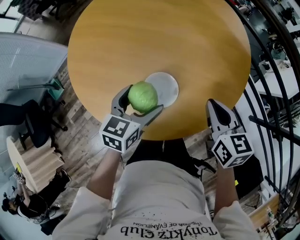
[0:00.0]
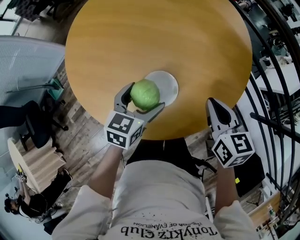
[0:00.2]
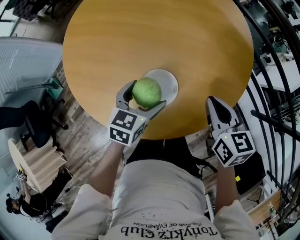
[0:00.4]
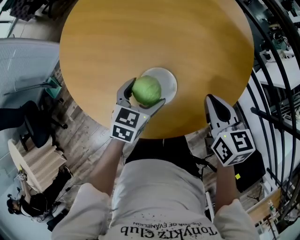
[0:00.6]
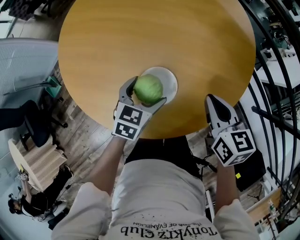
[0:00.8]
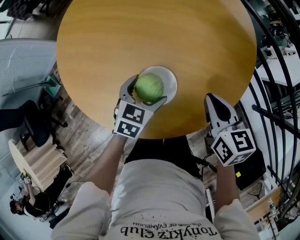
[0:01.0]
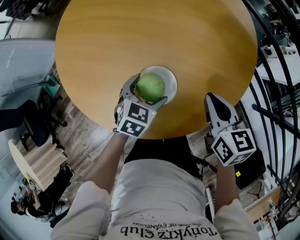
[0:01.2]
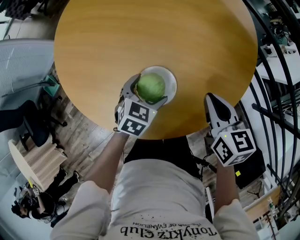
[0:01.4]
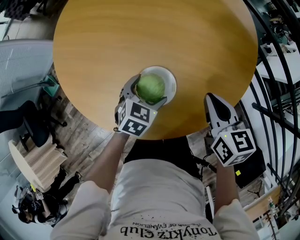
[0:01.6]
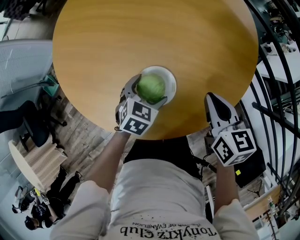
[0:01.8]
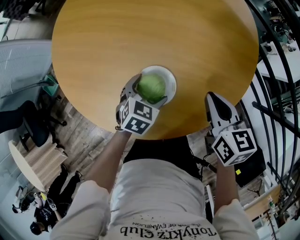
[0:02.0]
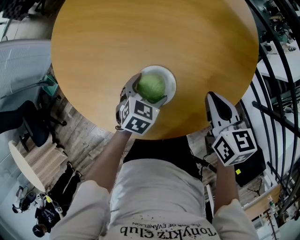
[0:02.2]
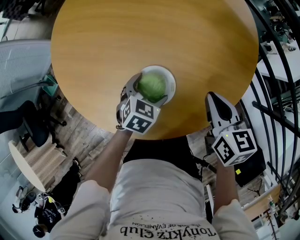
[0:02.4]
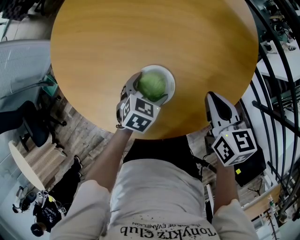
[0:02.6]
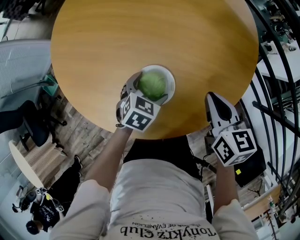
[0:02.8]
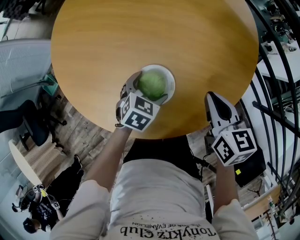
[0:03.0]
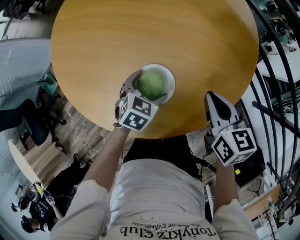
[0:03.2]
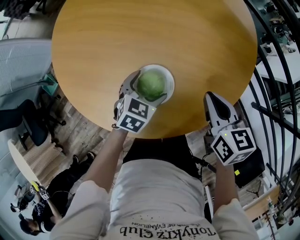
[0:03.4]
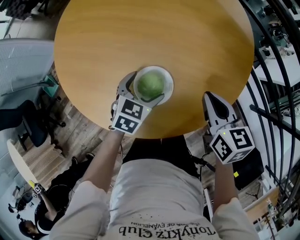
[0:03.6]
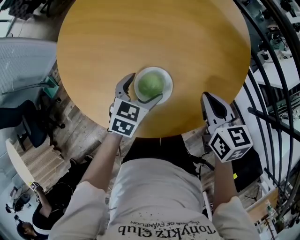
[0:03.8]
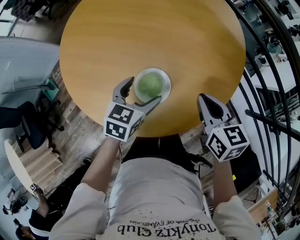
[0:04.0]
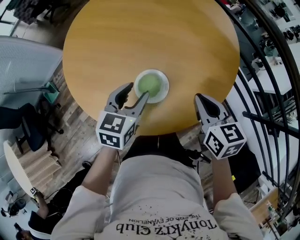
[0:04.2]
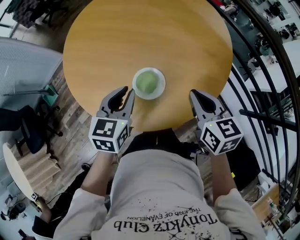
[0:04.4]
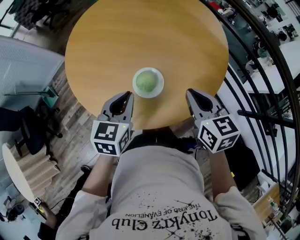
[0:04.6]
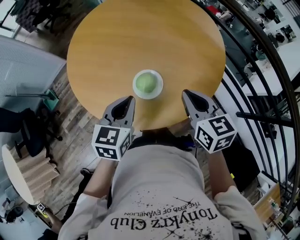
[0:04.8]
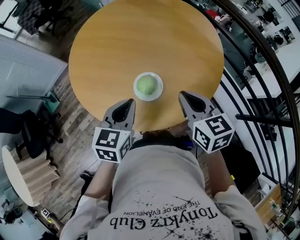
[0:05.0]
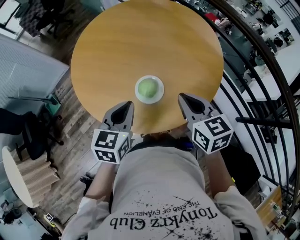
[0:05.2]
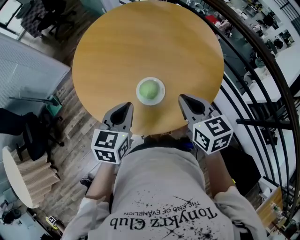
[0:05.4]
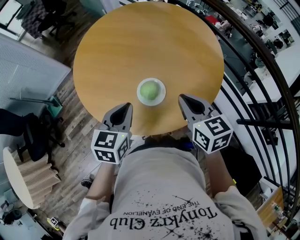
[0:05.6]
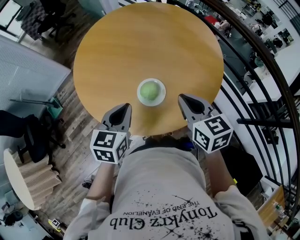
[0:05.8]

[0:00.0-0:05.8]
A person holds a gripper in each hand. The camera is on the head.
0.0 to 1.4 s: The left gripper is displaced downward by about 10 cm, and changes its angle by about 20 degrees.
1.4 to 2.8 s: The grippers stay close to where they were, moving slightly.
2.8 to 4.4 s: The right gripper heads upward, covering approximately 10 cm. Meanwhile the left gripper heads upward, covering roughly 20 cm, swivels roughly 30 degrees, and closes its fingers.
4.4 to 5.8 s: The left gripper heads backward, covering about 5 cm. The right gripper shifts about 10 cm upward and to the left.

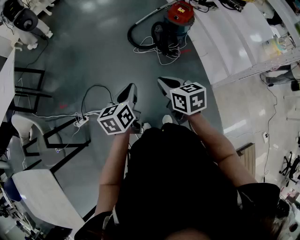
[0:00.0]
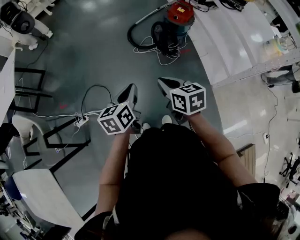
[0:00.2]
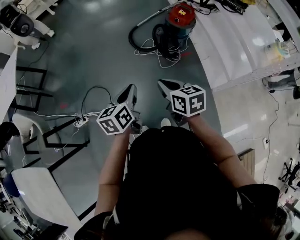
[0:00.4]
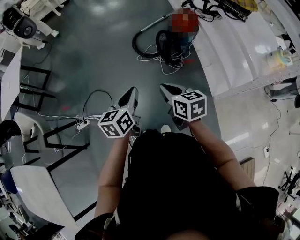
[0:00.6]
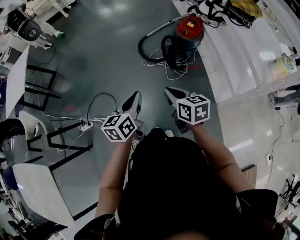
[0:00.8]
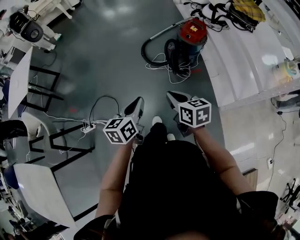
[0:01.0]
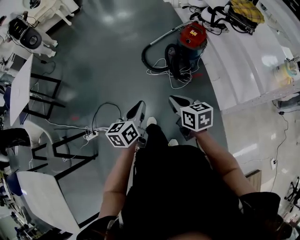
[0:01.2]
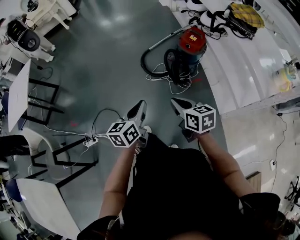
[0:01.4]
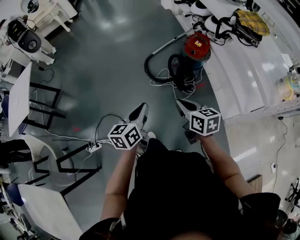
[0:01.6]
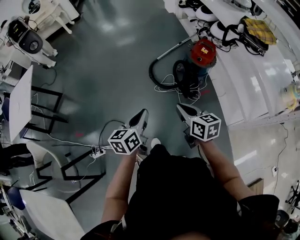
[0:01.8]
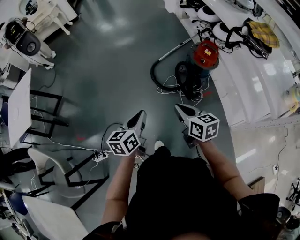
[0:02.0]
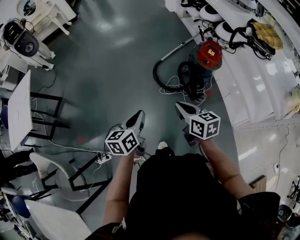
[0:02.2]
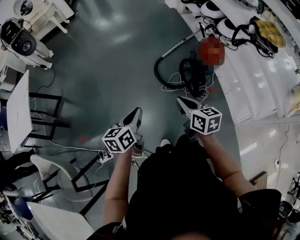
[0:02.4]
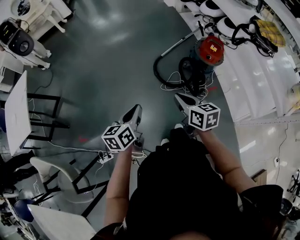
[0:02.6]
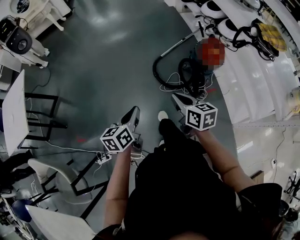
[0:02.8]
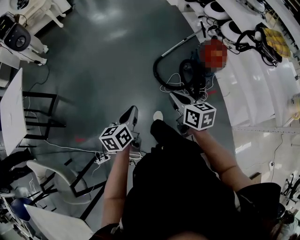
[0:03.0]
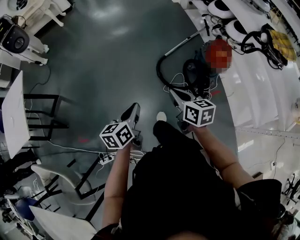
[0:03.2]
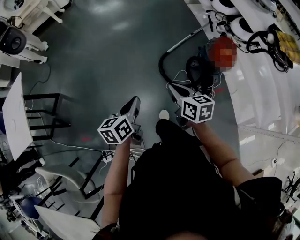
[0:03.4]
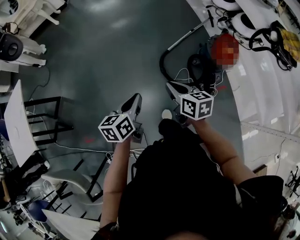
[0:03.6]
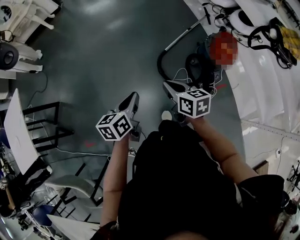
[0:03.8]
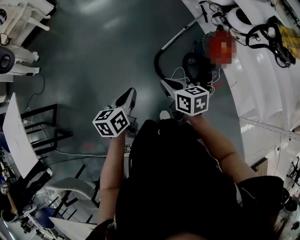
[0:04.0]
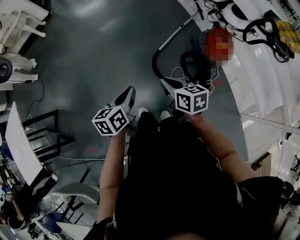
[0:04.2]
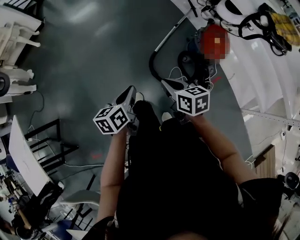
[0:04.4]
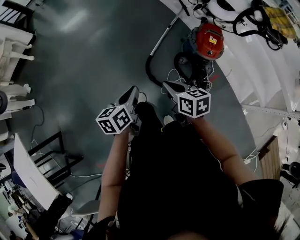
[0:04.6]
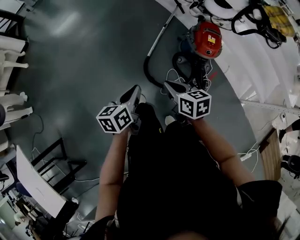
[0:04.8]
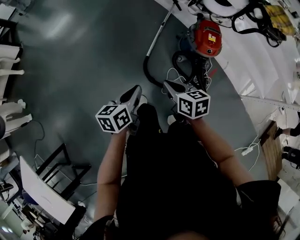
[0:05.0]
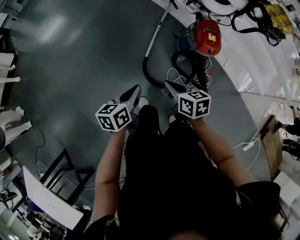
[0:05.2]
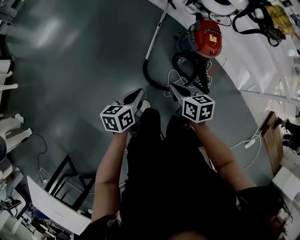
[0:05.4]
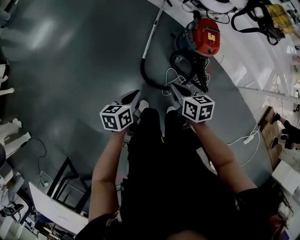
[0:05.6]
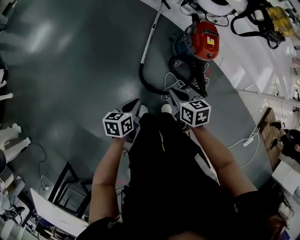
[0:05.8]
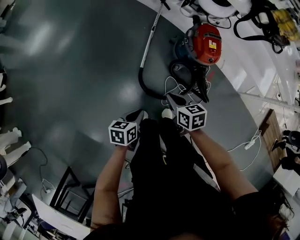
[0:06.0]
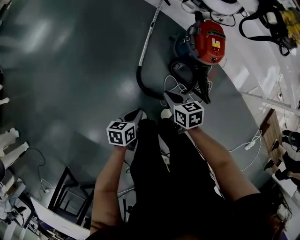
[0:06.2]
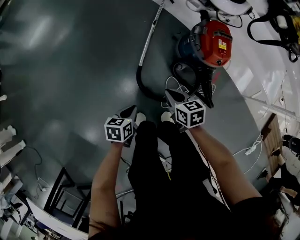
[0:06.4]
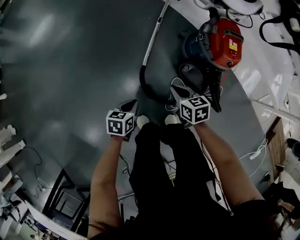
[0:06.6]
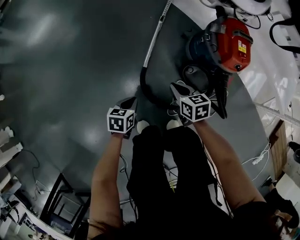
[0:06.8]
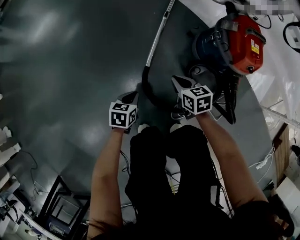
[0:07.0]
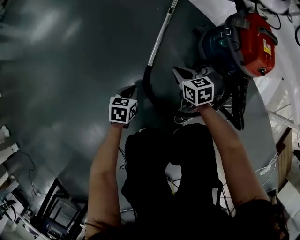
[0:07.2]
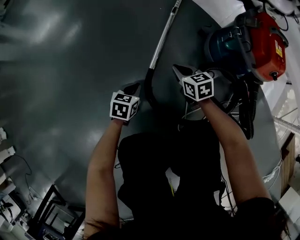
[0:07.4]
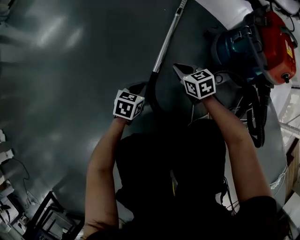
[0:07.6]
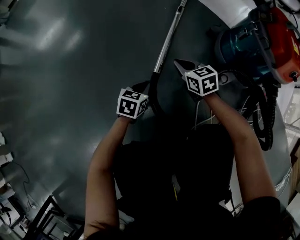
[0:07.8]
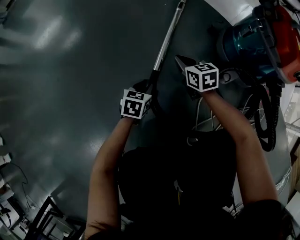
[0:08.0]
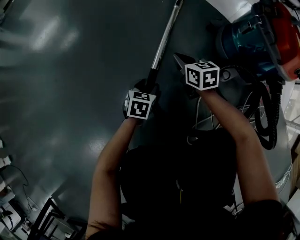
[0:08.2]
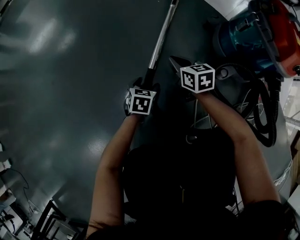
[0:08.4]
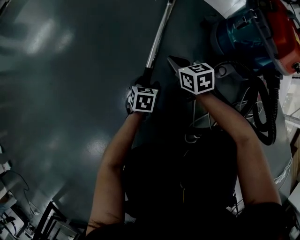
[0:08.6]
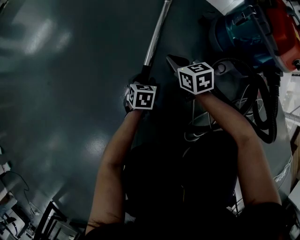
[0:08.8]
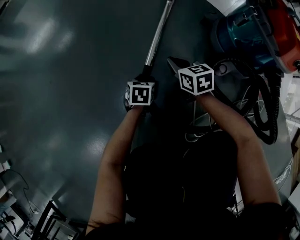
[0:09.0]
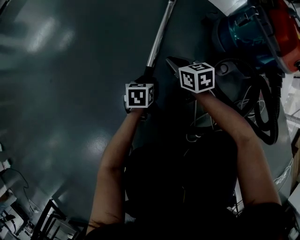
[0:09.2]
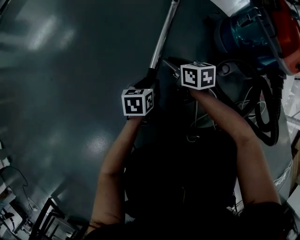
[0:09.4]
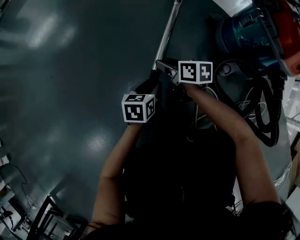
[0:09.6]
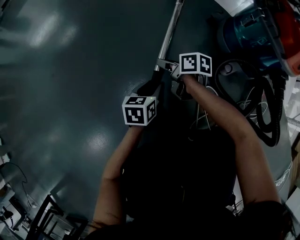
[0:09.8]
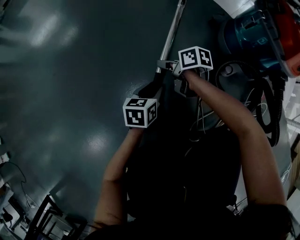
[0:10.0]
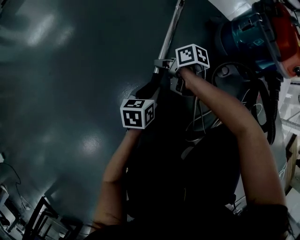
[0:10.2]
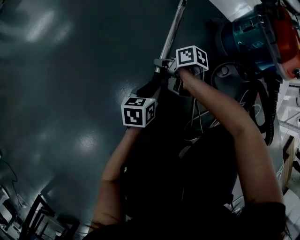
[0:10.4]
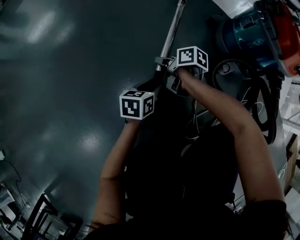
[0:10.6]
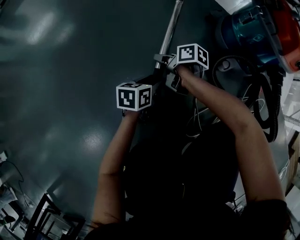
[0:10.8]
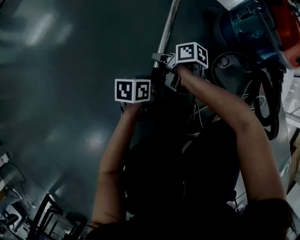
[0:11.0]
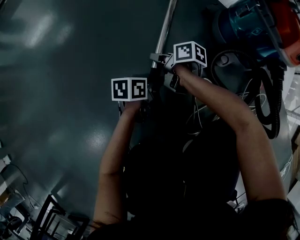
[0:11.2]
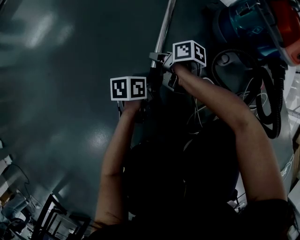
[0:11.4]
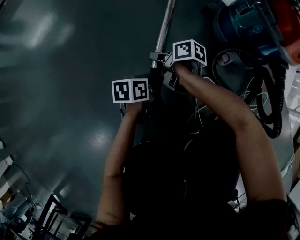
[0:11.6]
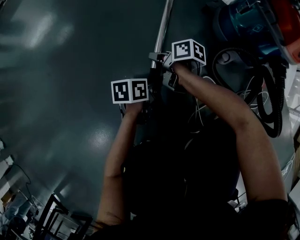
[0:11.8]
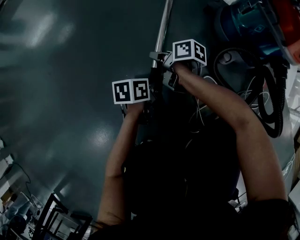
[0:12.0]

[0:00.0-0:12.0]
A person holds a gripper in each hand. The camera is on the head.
0.0 to 1.6 s: Both grippers travel together forward, some 15 cm.
1.6 to 3.0 s: The right gripper goes about 30 cm forward and to the left, while the left gripper goes approximately 30 cm to the left and forward.
3.0 to 4.4 s: Both grippers travel together forward, approximately 25 cm.
4.4 to 6.0 s: The left gripper moves downward, roughly 20 cm, and rotates approximately 40 degrees. Meanwhile the right gripper changes place by about 25 cm, and turns by roughly 30 degrees.
6.0 to 7.6 s: The grippers both shift downward and forward by about 50 cm. The left gripper turns by approximately 20 degrees; the right gripper rotates about 20 degrees.
7.6 to 9.0 s: The left gripper travels downward by roughly 10 cm, and opens up.
9.0 to 10.4 s: The left gripper goes roughly 10 cm upward and backward, and turns by about 20 degrees. The right gripper travels to the left by about 5 cm, twists about 40 degrees clockwise, seen from behind, and opens up.
10.4 to 12.0 s: The left gripper turns by approximately 20 degrees.

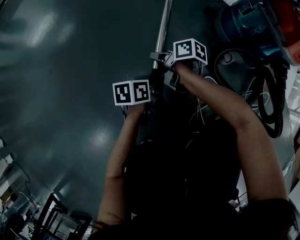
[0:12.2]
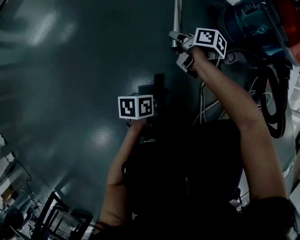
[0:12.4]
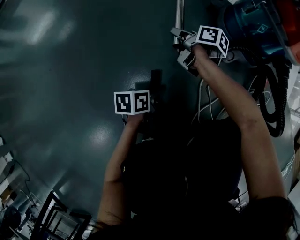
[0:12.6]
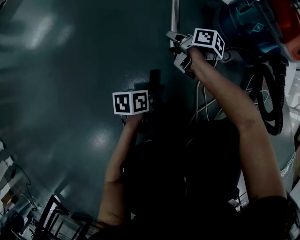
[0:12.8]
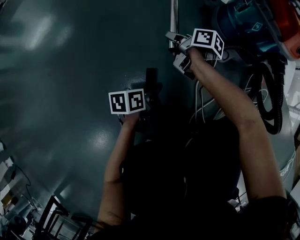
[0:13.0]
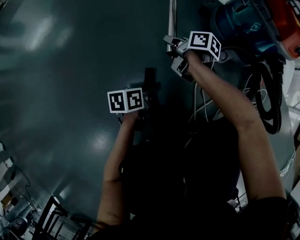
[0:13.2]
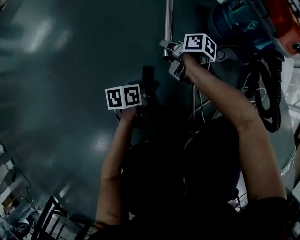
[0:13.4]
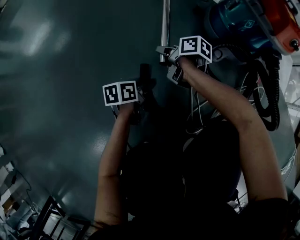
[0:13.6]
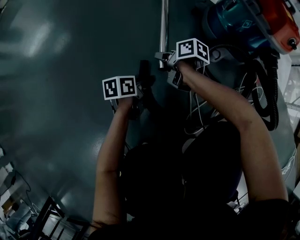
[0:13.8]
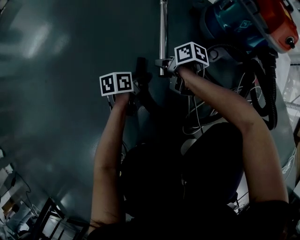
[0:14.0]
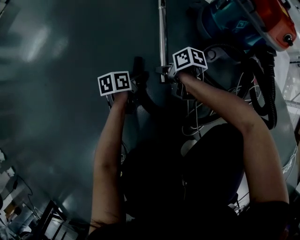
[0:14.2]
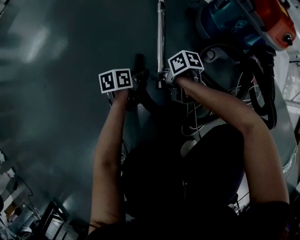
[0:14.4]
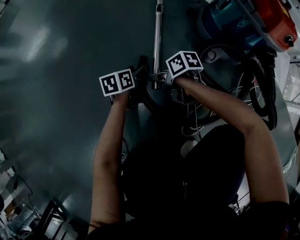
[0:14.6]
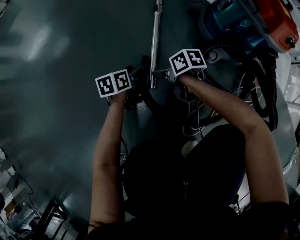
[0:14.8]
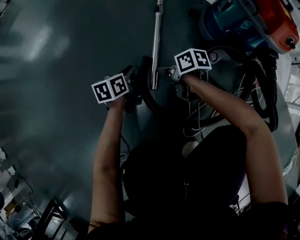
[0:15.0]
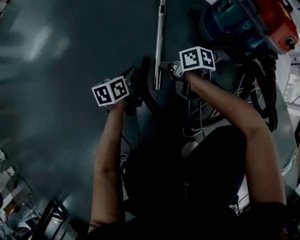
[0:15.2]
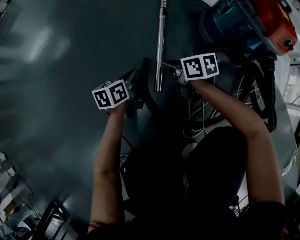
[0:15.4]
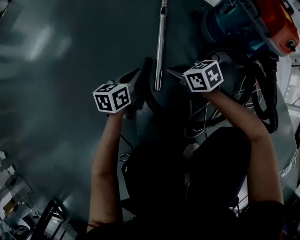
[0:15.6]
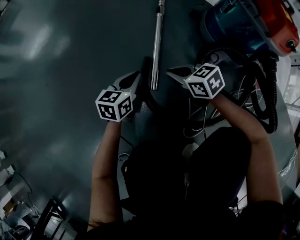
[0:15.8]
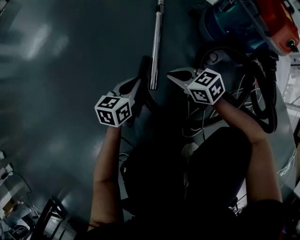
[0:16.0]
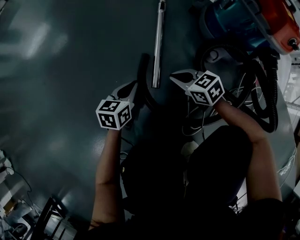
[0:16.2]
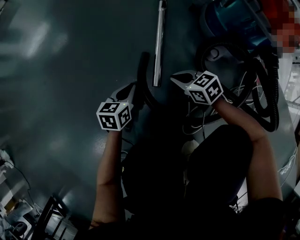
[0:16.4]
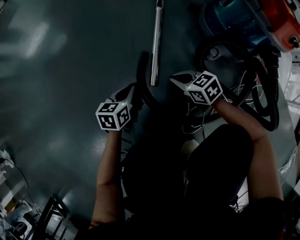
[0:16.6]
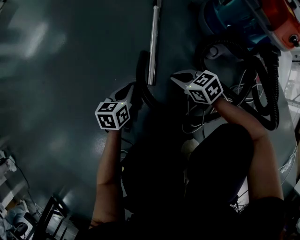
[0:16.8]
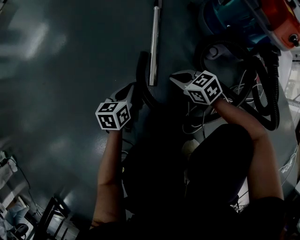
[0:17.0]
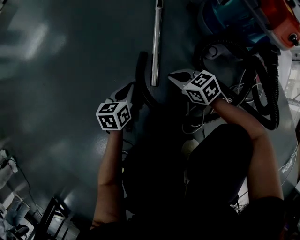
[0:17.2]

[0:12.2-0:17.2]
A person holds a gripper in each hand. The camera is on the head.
12.2 to 13.8 s: The right gripper moves to the right, about 5 cm, and goes forward and returns, roughly 10 cm each way.
13.8 to 15.6 s: The left gripper goes approximately 5 cm upward, swivels roughly 30 degrees, and closes up; the right gripper ends up roughly 5 cm from where it was, rotates around the line of its fingers by roughly 50 degrees, counterclockwise from behind, and closes up.
15.6 to 17.2 s: The right gripper ends up approximately 5 cm from where it was. Meanwhile the left gripper shifts about 5 cm backward.

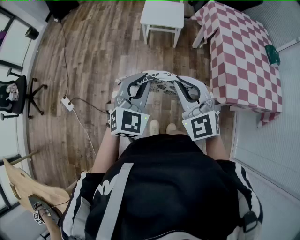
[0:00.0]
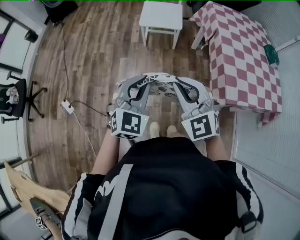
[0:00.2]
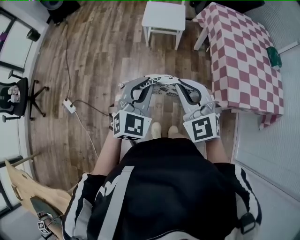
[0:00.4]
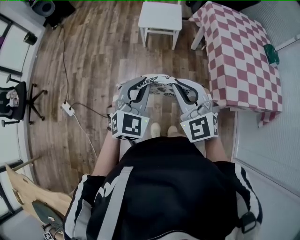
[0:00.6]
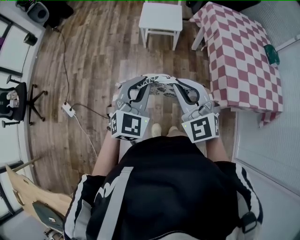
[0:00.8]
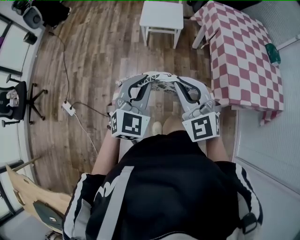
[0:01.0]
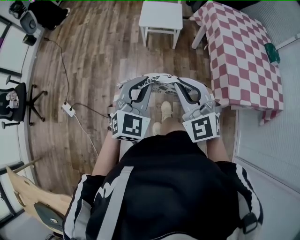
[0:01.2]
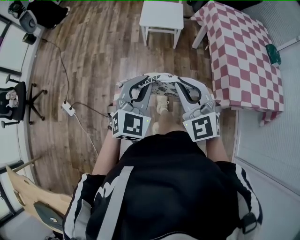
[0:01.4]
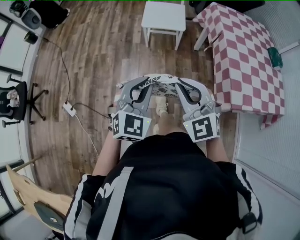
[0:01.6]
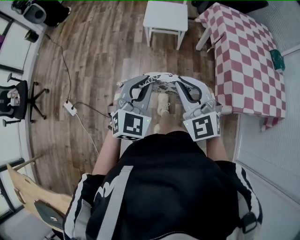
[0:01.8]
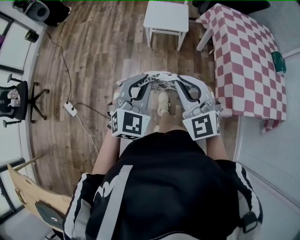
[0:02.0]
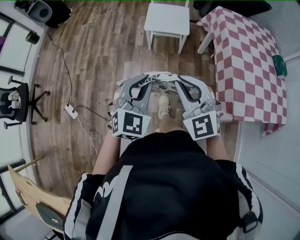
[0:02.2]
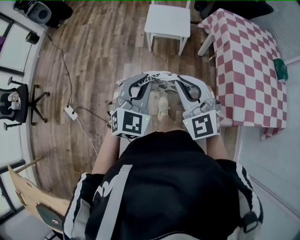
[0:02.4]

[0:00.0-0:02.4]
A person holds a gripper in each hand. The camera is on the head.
0.0 to 1.2 s: The grippers make only small movements.
1.2 to 2.4 s: Both grippers travel together forward, about 10 cm.
